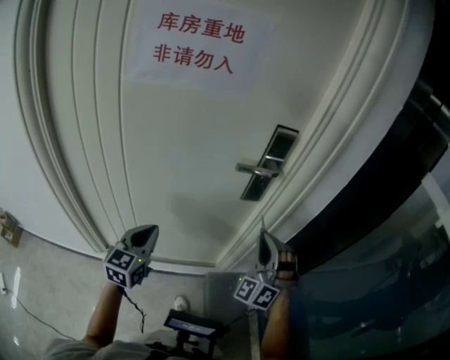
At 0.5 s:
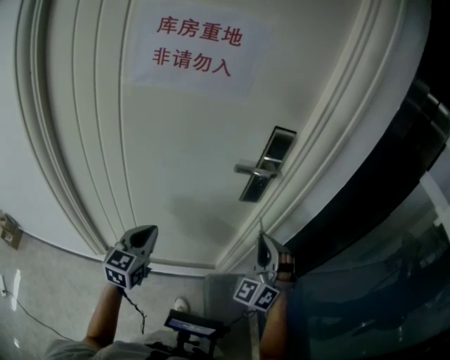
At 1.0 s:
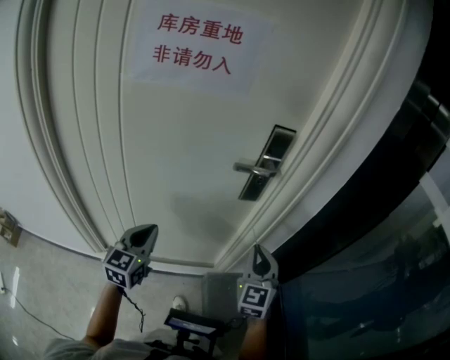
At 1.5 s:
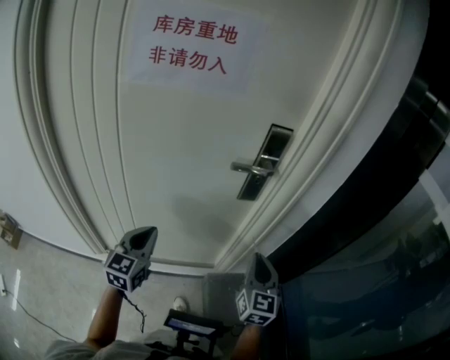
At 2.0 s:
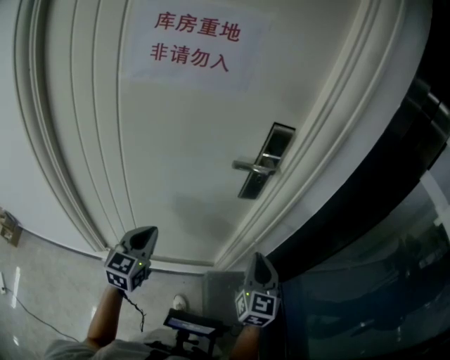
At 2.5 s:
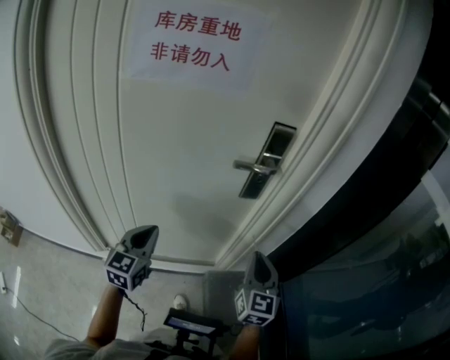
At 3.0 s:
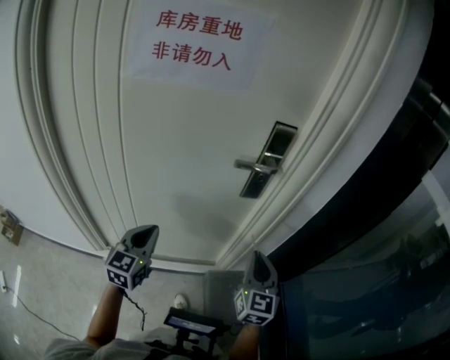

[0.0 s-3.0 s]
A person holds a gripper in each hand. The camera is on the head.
0.0 to 1.5 s: The right gripper ends up approximately 5 cm from where it was, and rolls clockwise, seen from behind, by approximately 70 degrees.
1.5 to 3.0 s: The grippers move only a little.

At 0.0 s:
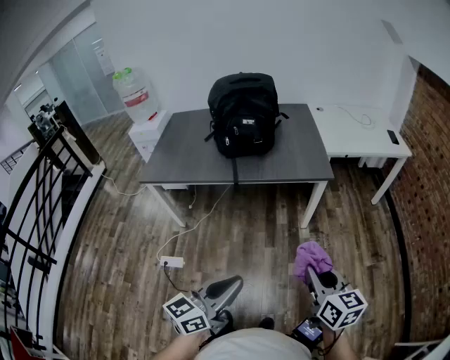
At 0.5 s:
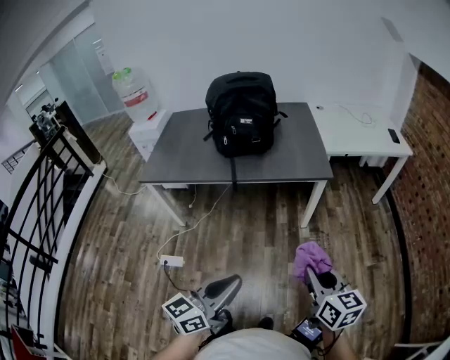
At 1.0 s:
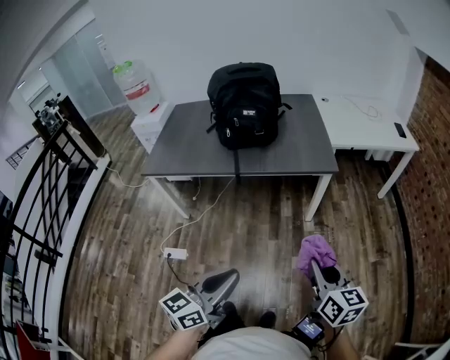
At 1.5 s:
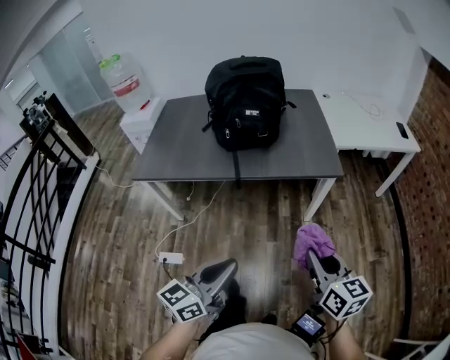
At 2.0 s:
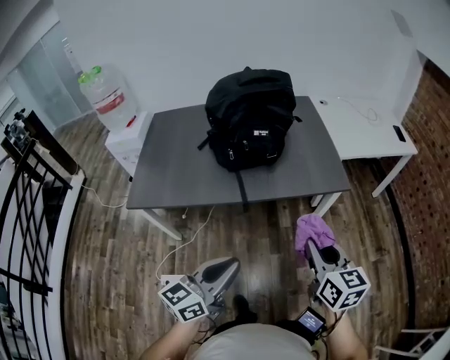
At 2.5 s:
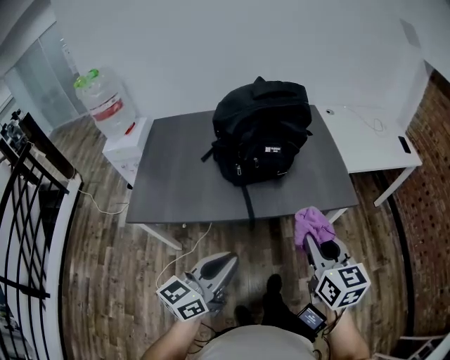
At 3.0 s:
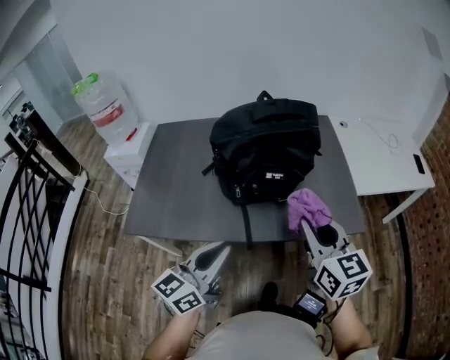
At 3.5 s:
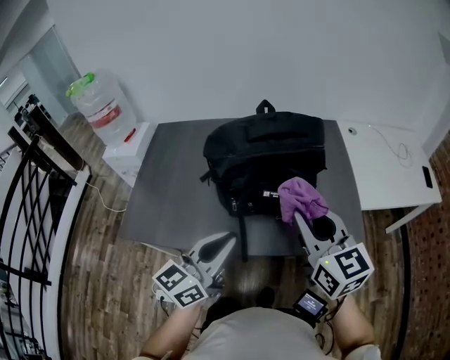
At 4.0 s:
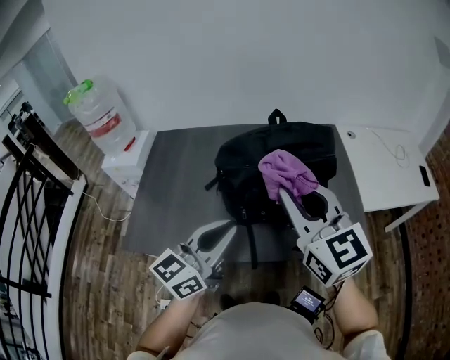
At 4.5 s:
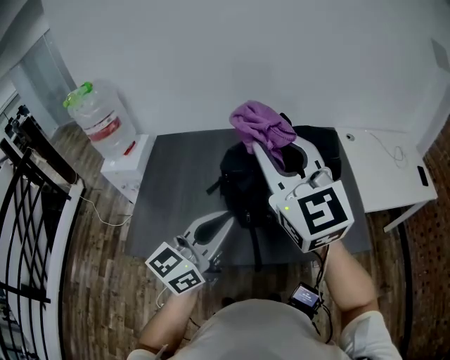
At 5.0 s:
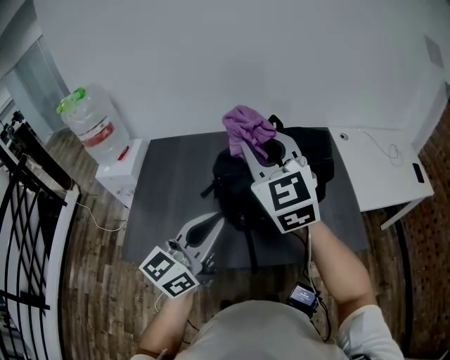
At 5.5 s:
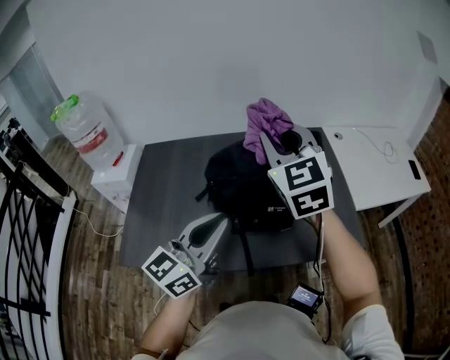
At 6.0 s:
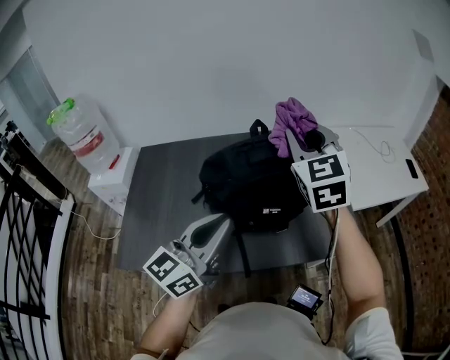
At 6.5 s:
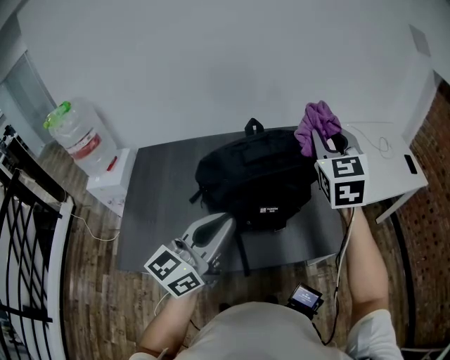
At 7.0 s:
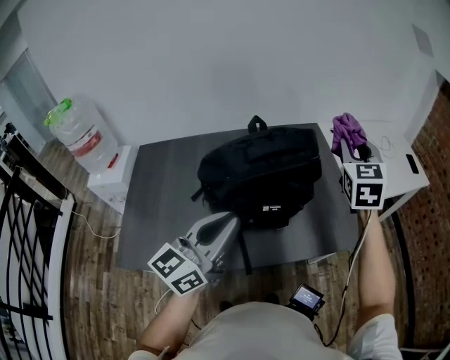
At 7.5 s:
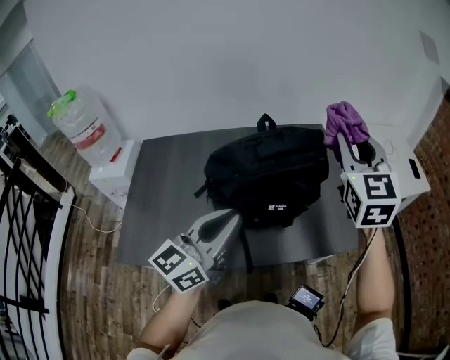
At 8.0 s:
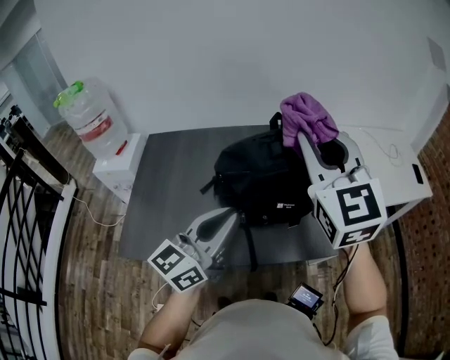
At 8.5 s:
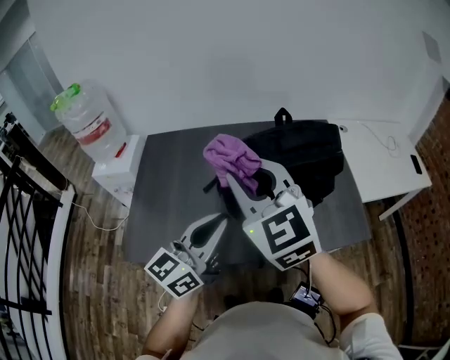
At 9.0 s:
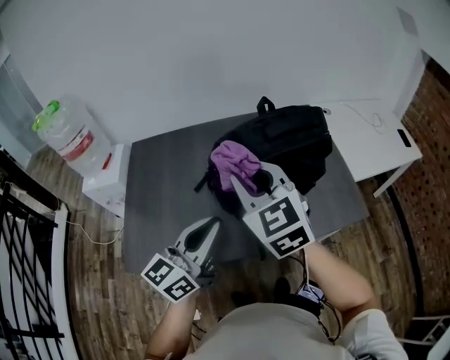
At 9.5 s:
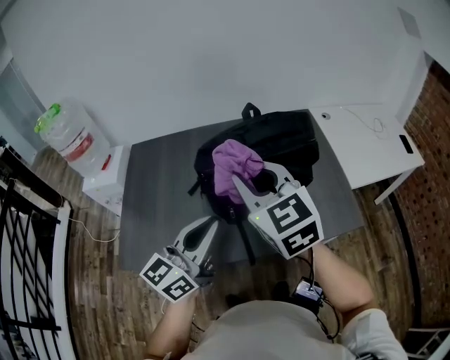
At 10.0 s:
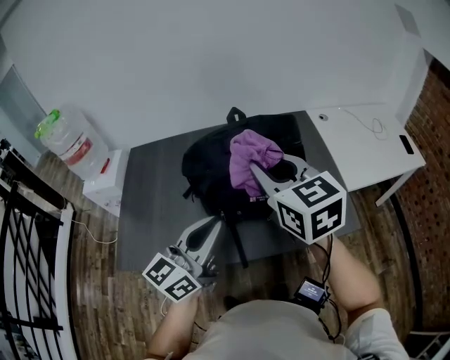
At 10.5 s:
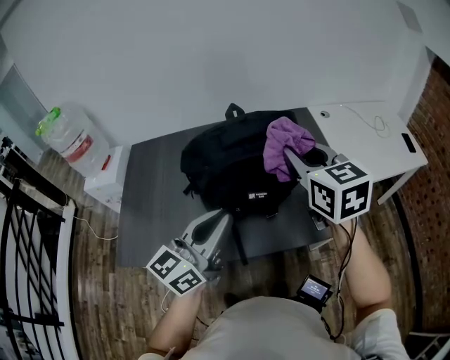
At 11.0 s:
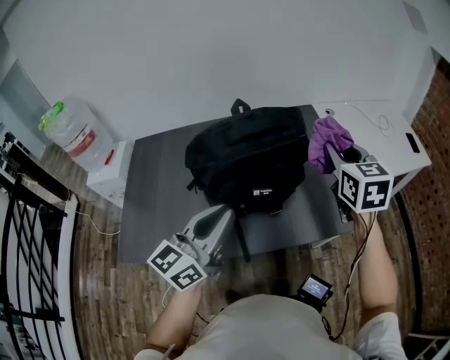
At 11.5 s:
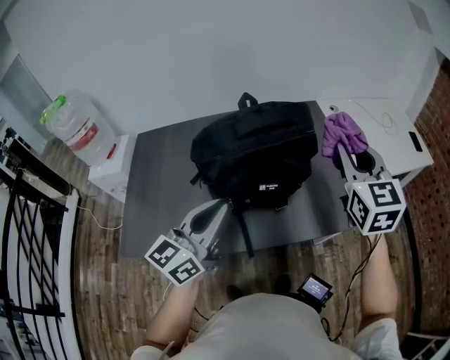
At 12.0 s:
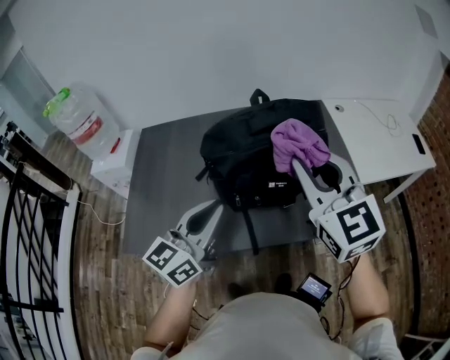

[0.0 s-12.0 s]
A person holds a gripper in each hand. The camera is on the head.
0.0 to 2.0 s: The two grippers go roughly 25 cm forward and to the left.
2.0 to 4.0 s: The left gripper travels forward by about 35 cm; the right gripper travels forward, to the left and upward by about 40 cm, and changes its angle by about 30 degrees.
4.0 to 6.0 s: The right gripper shifts about 15 cm forward, and rotates some 30 degrees.
6.0 to 8.0 s: The right gripper shifts about 10 cm backward, and reaches approximately 15 cm to the right, then returns.
8.0 to 10.0 s: The right gripper goes roughly 10 cm downward, goes to the left and returns, approximately 15 cm each way, and rotates some 30 degrees.
10.0 to 12.0 s: The right gripper goes to the right and returns, some 15 cm each way.

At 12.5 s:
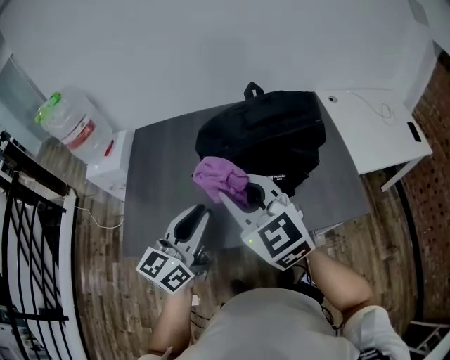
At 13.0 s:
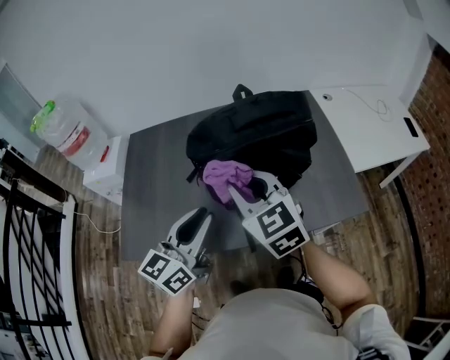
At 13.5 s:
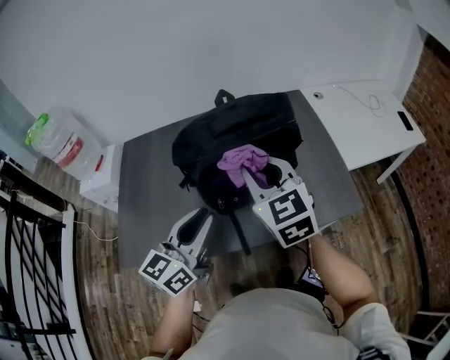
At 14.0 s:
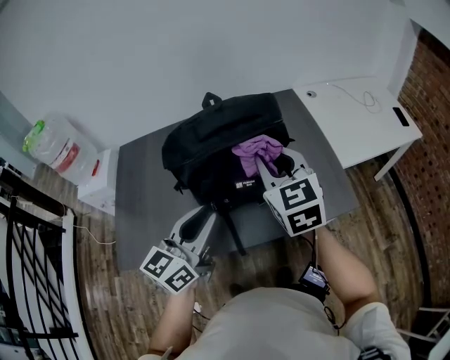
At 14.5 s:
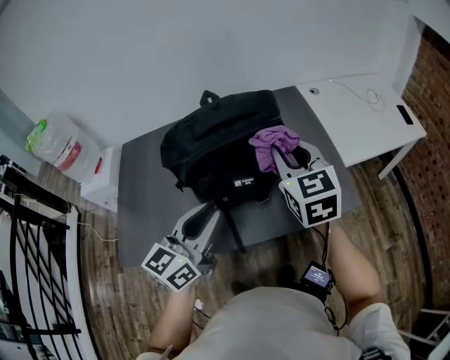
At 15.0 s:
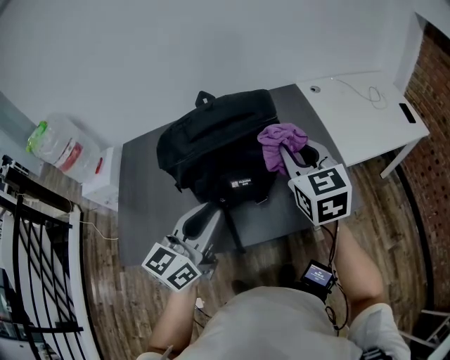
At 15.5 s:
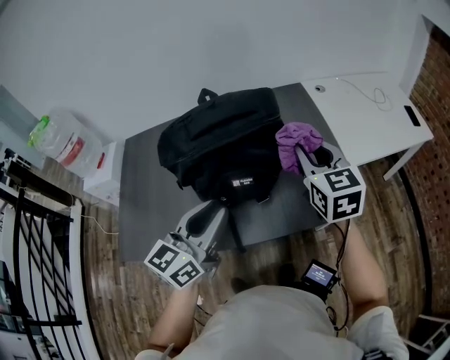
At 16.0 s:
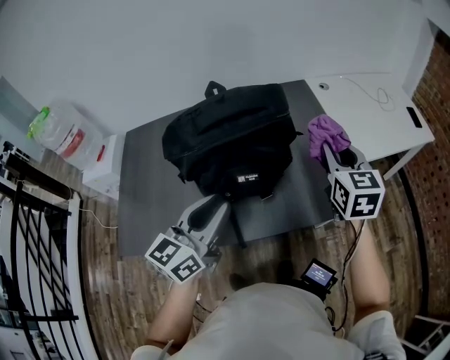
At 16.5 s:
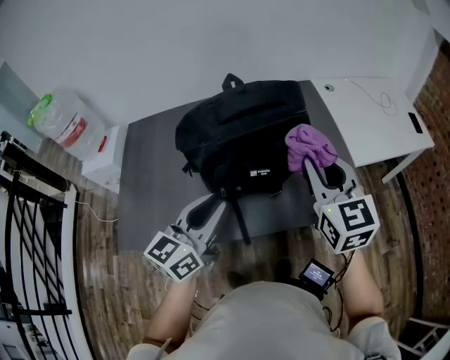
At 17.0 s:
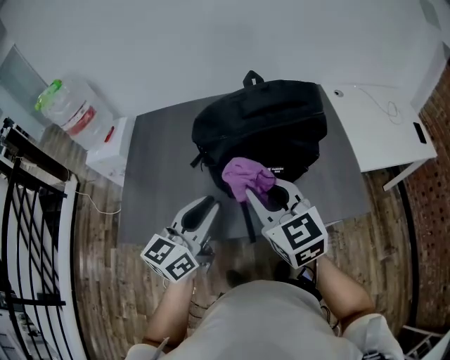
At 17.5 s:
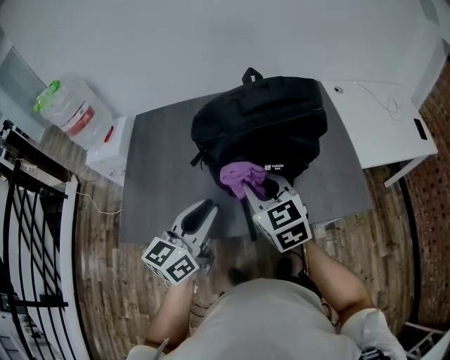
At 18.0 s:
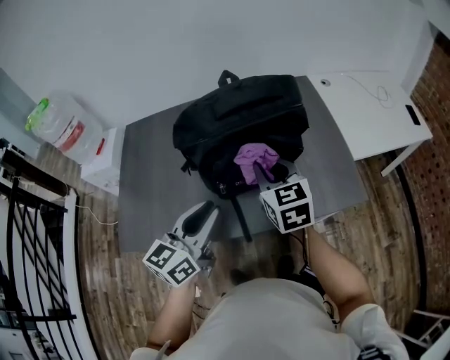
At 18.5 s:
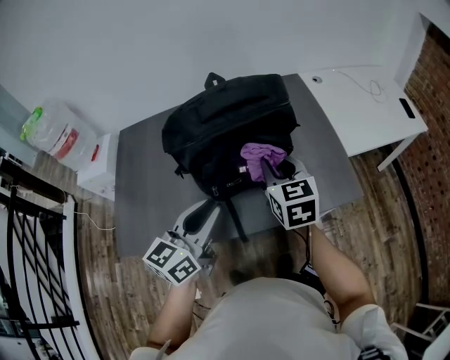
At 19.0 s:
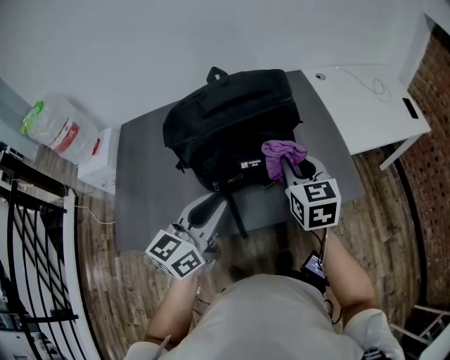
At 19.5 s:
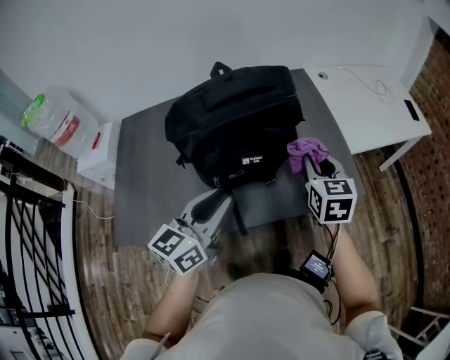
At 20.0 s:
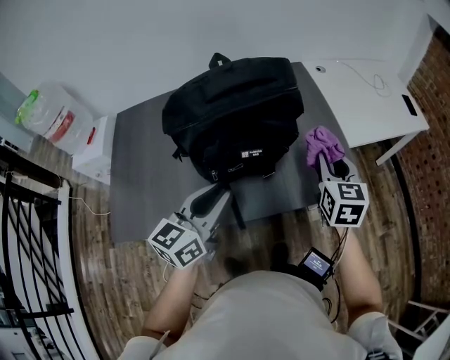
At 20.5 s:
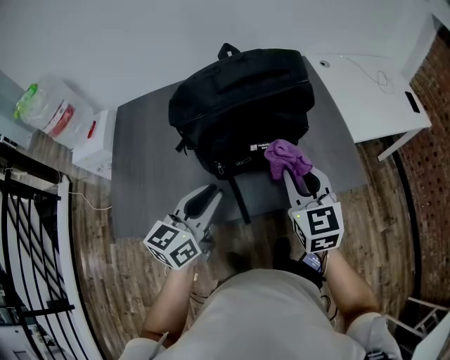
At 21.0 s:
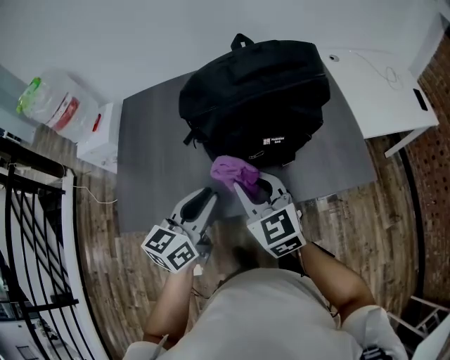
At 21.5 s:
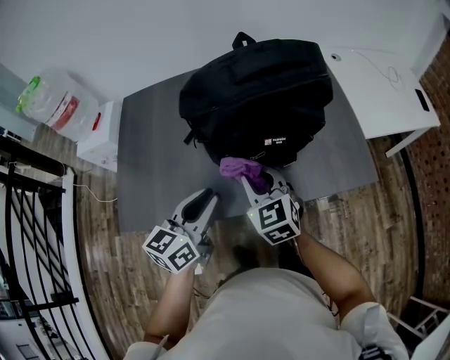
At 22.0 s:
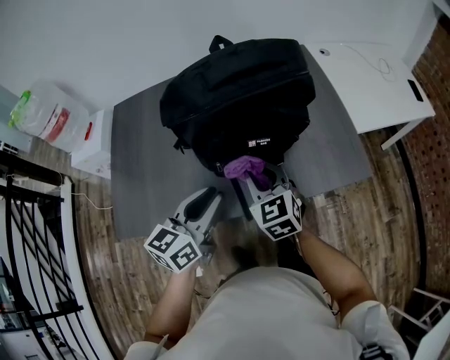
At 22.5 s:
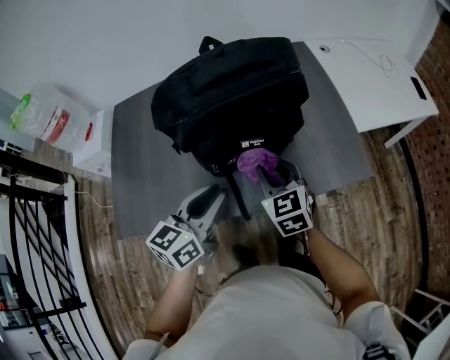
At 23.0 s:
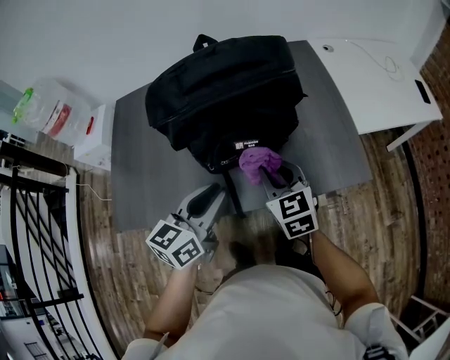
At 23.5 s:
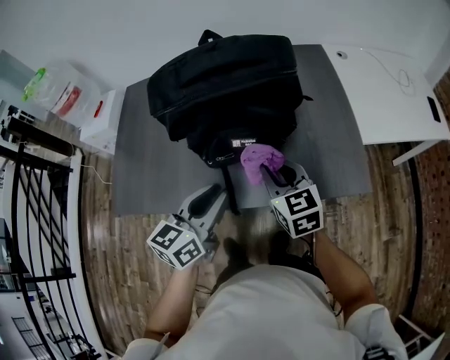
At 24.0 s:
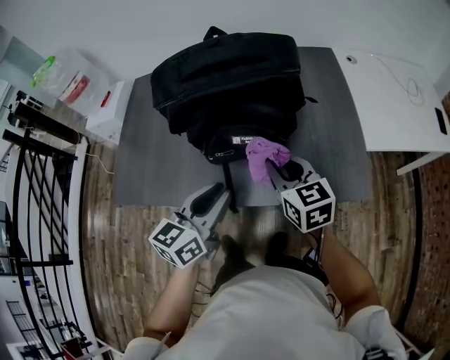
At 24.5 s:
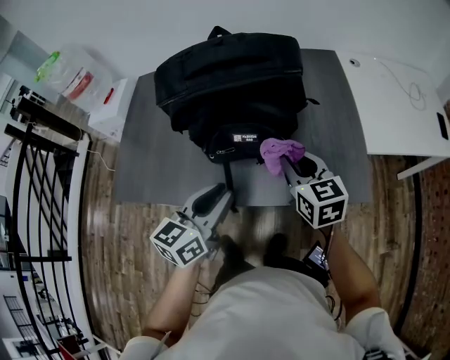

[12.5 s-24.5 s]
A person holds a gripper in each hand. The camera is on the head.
12.5 to 14.5 s: The right gripper shifts some 25 cm to the right and forward, and changes its angle by roughly 30 degrees. Meanwhile the left gripper is displaced to the right by some 10 cm.
14.5 to 16.5 s: The right gripper travels to the right and back again, approximately 10 cm each way.
16.5 to 18.5 s: The right gripper is displaced downward by about 10 cm, and reaches some 20 cm to the left, then returns.
18.5 to 20.5 s: The right gripper moves backward, some 5 cm, and moves some 15 cm to the right and comes back.
20.5 to 22.5 s: The right gripper is displaced downward by some 10 cm, and reaches approximately 15 cm to the left, then returns.
22.5 to 24.5 s: Both grippers move to the right, about 5 cm.
